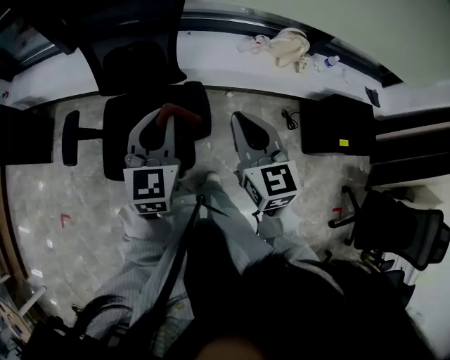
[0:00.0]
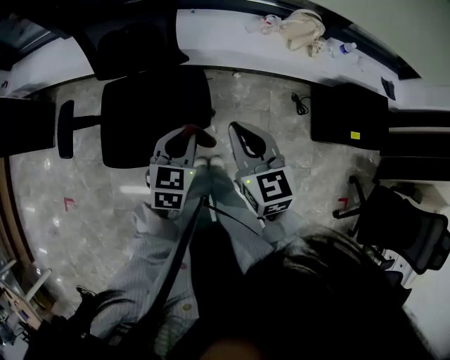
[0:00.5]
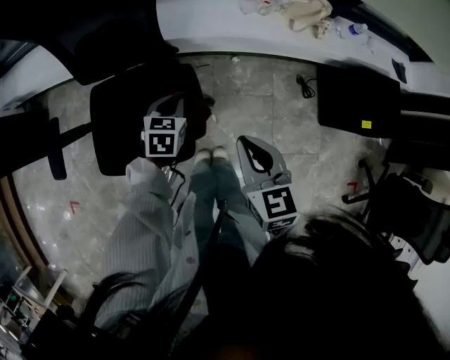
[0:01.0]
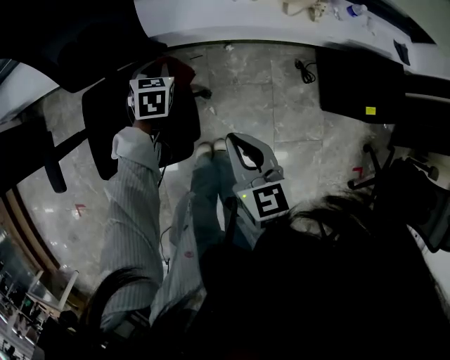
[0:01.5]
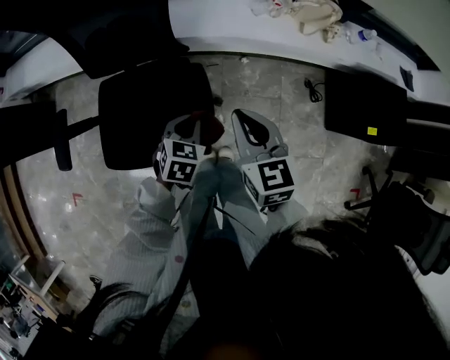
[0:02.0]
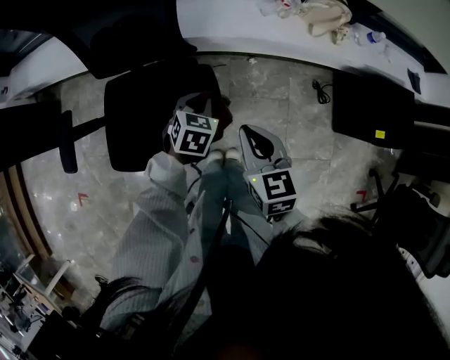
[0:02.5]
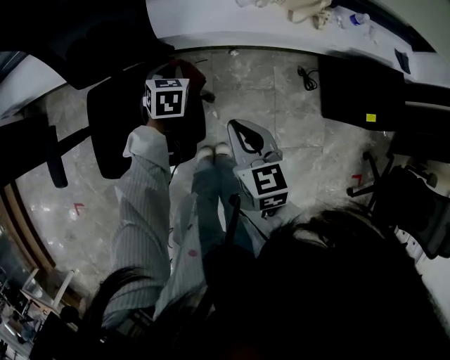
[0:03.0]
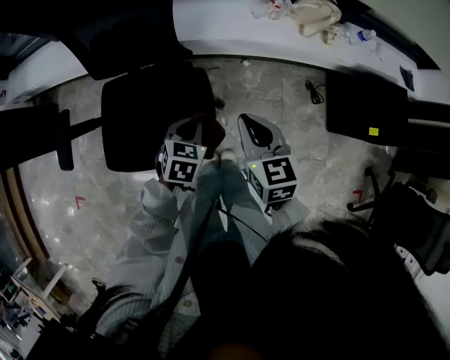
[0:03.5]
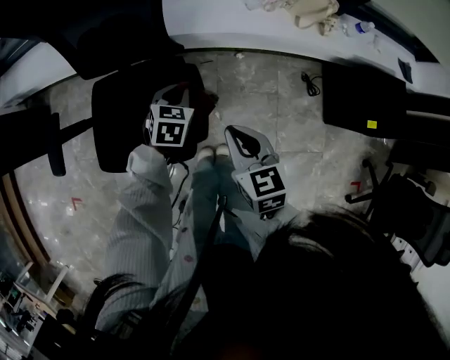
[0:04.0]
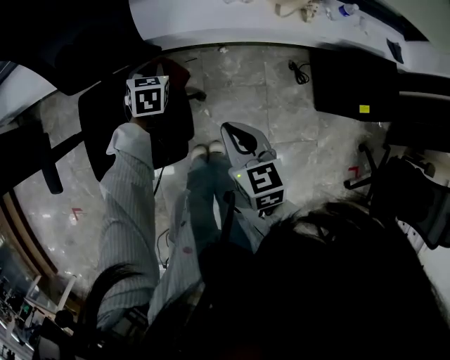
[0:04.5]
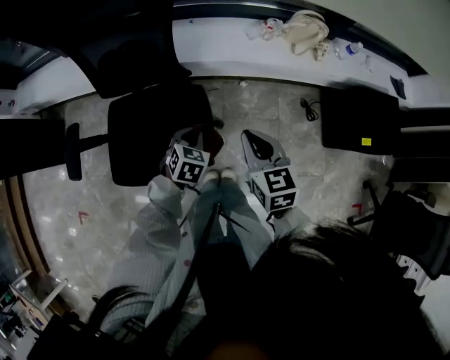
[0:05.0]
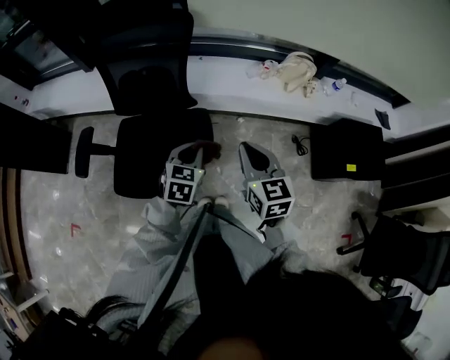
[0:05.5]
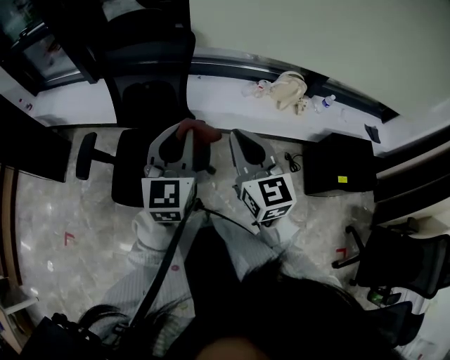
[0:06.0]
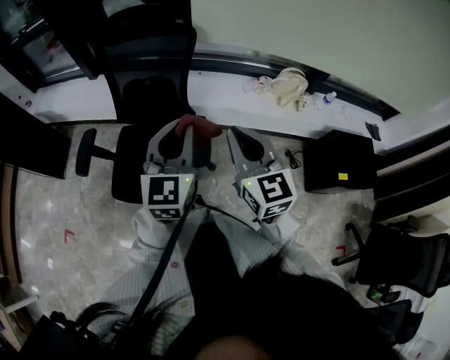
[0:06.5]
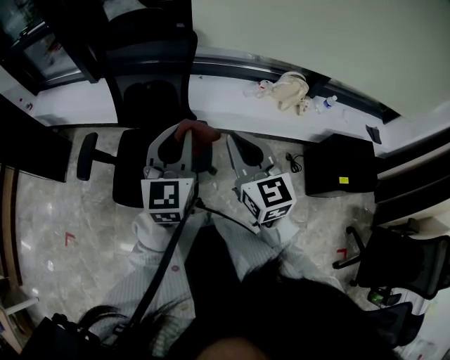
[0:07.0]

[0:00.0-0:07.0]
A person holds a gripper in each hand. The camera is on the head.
0:00.0 to 0:02.0: The left gripper shifts approximately 30 cm downward, and tilts its fingers about 40 degrees downward. Meanwhile the right gripper shifts approximately 20 cm downward and forward.
0:02.0 to 0:03.5: The left gripper moves roughly 15 cm forward and comes back.
0:03.5 to 0:05.0: The left gripper reaches some 20 cm forward, then returns.
0:05.0 to 0:07.0: The left gripper heads upward, covering about 35 cm, and angles its fingers upward, by about 50 degrees; the right gripper is displaced upward by some 20 cm, and swivels approximately 30 degrees.

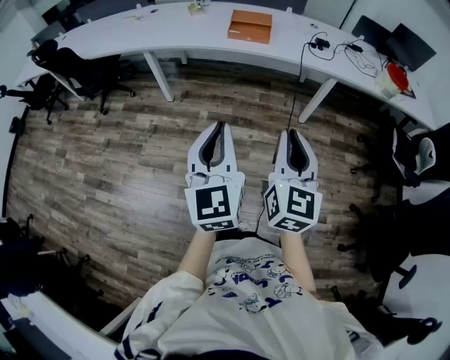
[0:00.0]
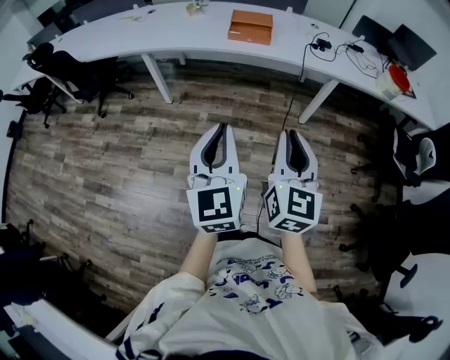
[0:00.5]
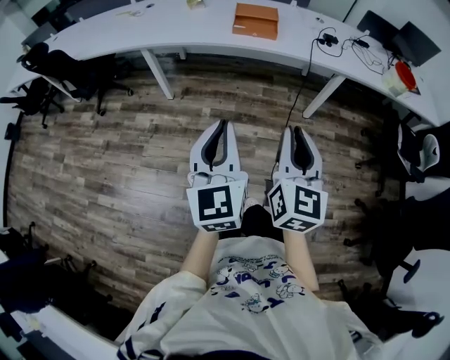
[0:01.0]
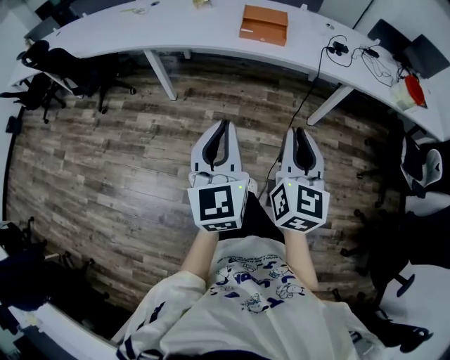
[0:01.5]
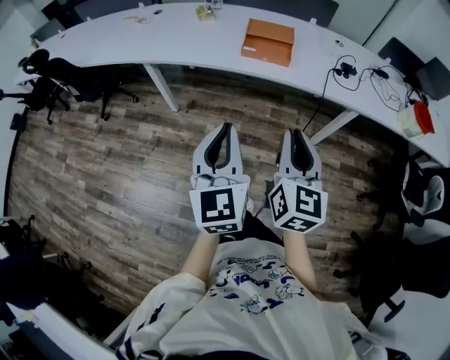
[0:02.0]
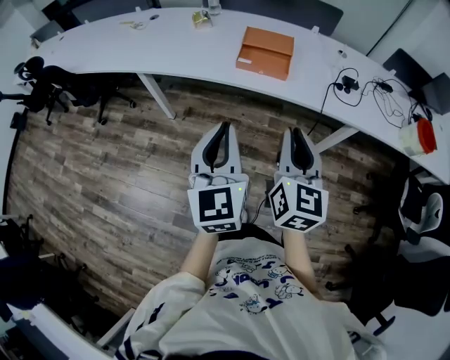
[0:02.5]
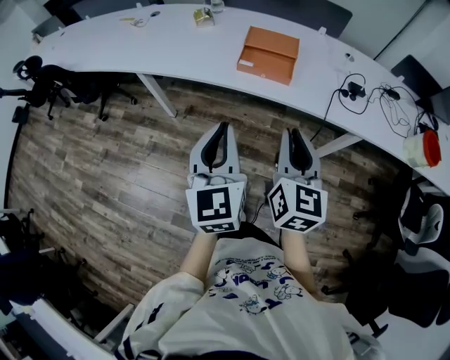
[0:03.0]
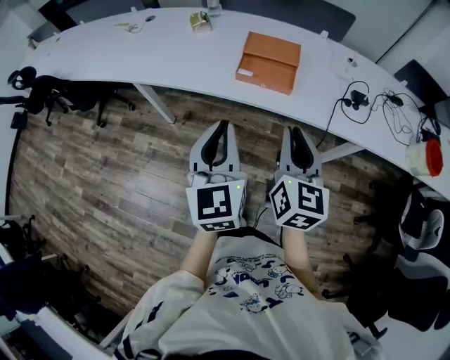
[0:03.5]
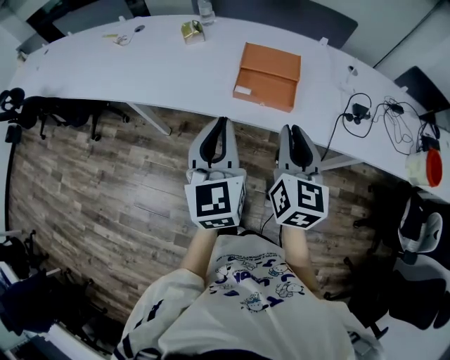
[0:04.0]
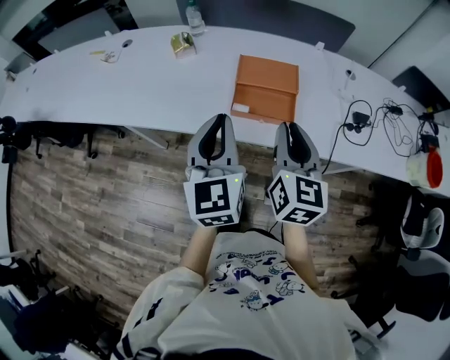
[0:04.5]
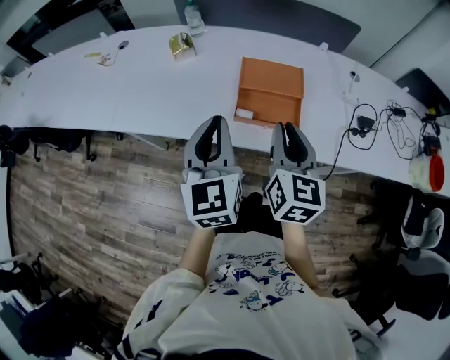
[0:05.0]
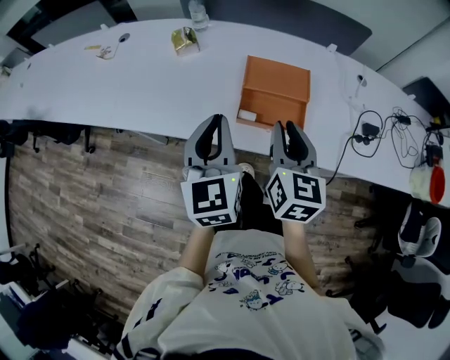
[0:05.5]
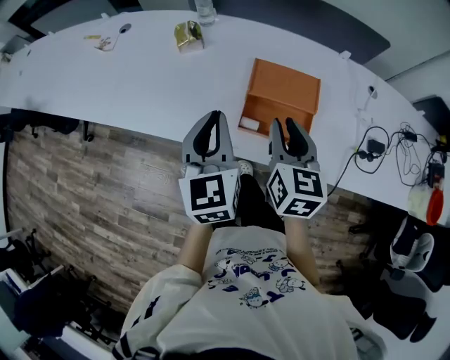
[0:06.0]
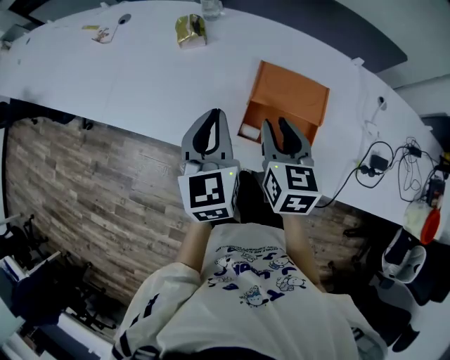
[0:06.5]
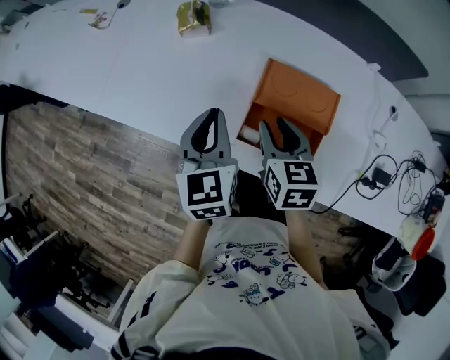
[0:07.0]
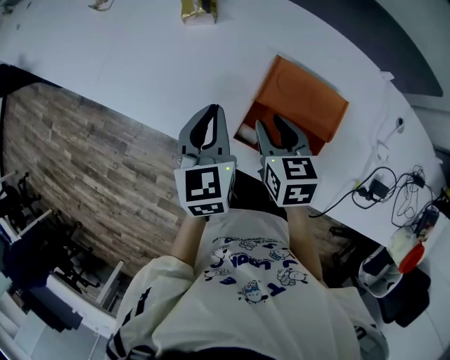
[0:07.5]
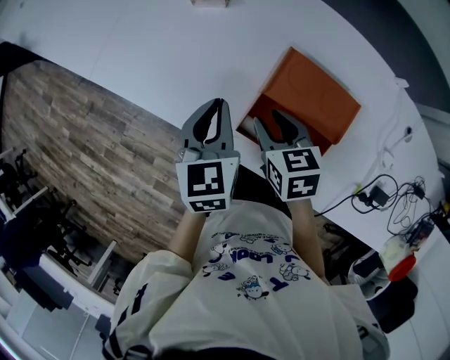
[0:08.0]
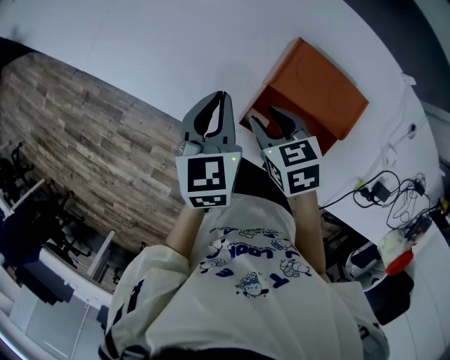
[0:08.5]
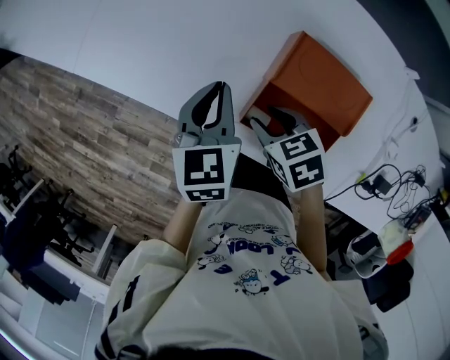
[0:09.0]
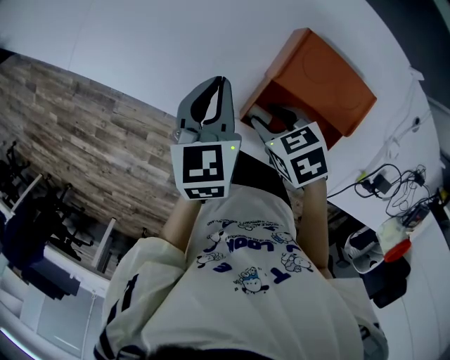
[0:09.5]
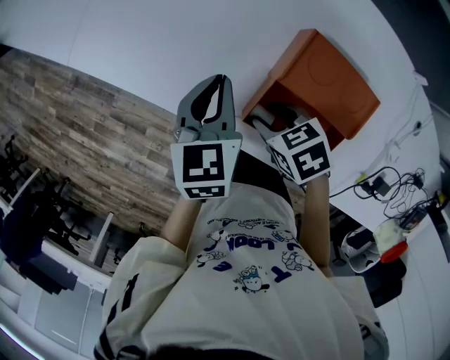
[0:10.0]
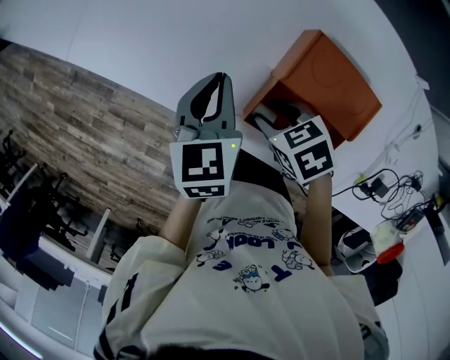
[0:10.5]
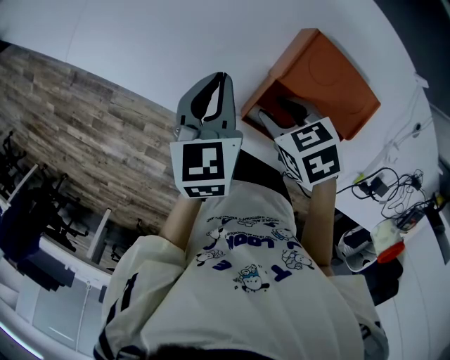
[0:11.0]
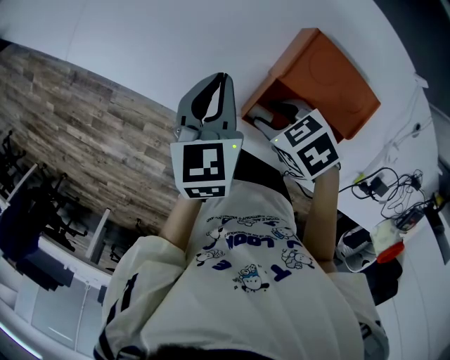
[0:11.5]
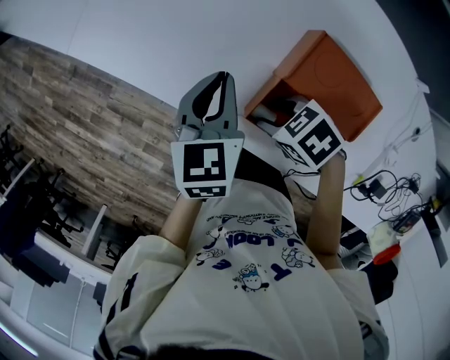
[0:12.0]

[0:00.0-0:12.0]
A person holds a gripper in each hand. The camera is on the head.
0:00.0 to 0:02.0: The grippers both shift forward by some 25 cm.
0:02.0 to 0:04.0: Both grippers move forward, about 30 cm.
0:04.0 to 0:06.0: The two grippers go roughly 20 cm forward.
0:06.0 to 0:08.0: Both grippers move downward, roughly 15 cm. The left gripper rotates roughly 20 degrees; the right gripper swivels roughly 40 degrees.
0:08.0 to 0:10.0: Both grippers travel together downward, approximately 5 cm. The right gripper changes its angle by some 30 degrees.
0:10.0 to 0:12.0: The right gripper rotates about 20 degrees.

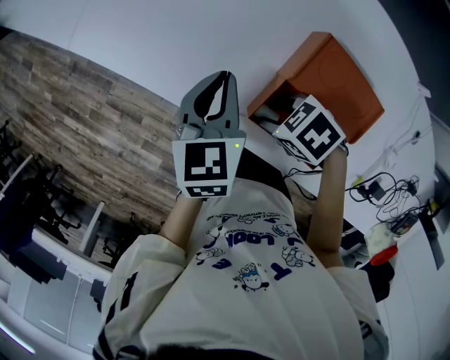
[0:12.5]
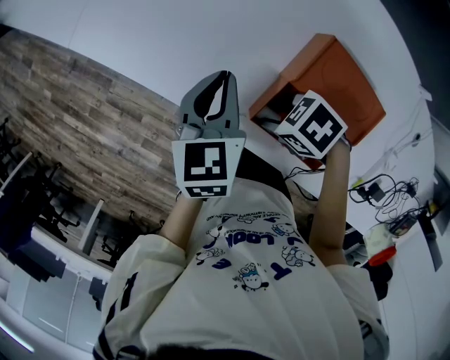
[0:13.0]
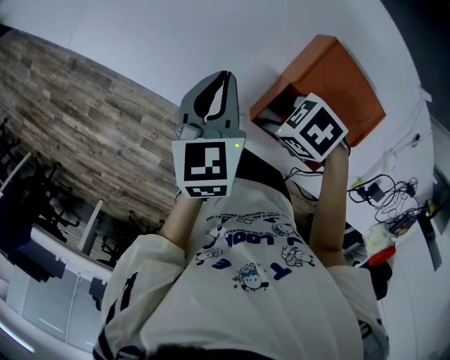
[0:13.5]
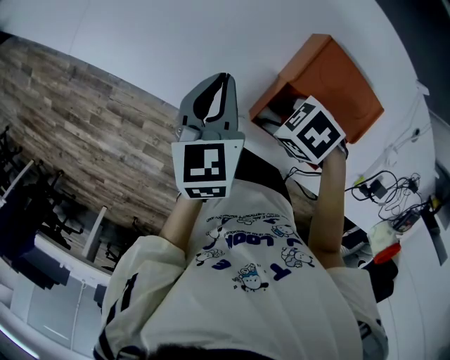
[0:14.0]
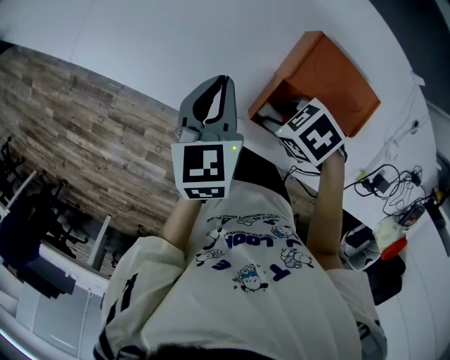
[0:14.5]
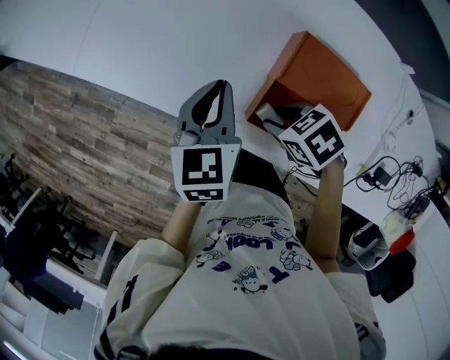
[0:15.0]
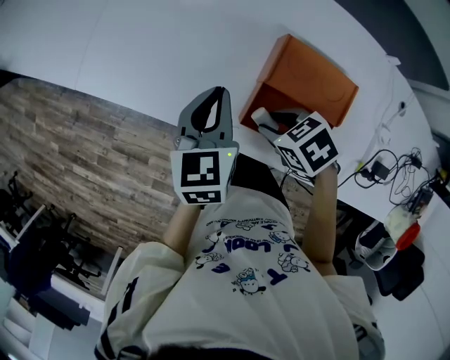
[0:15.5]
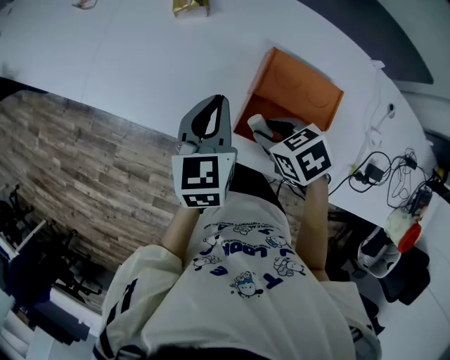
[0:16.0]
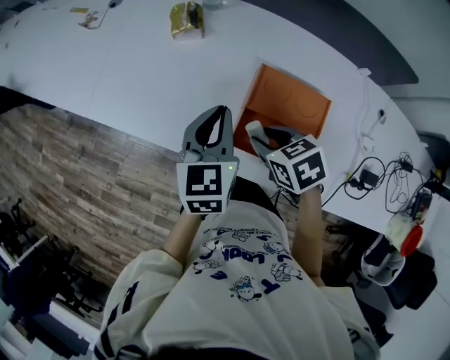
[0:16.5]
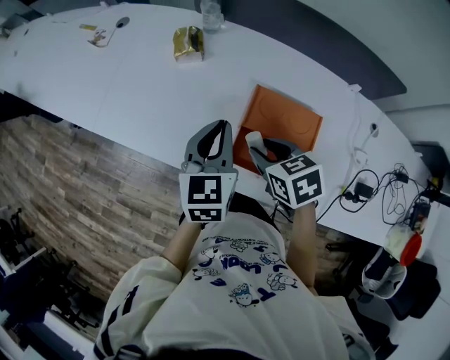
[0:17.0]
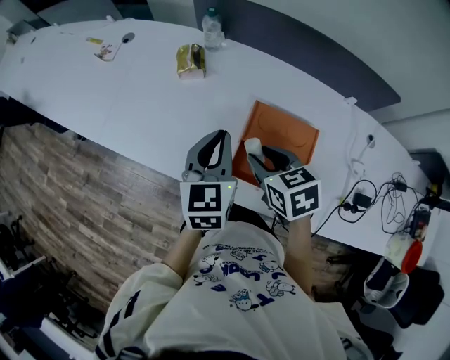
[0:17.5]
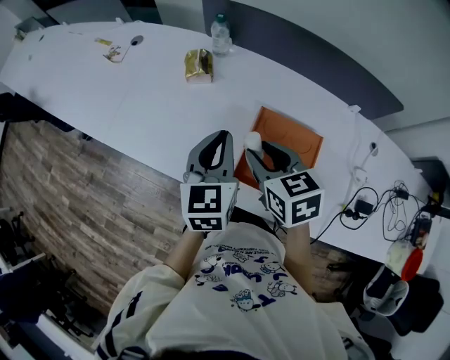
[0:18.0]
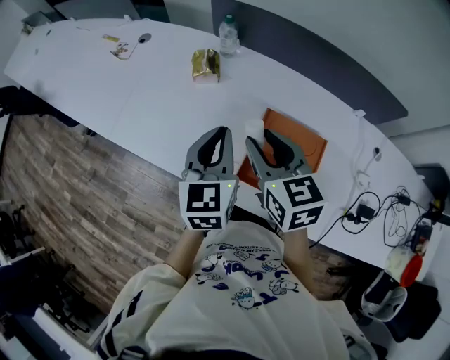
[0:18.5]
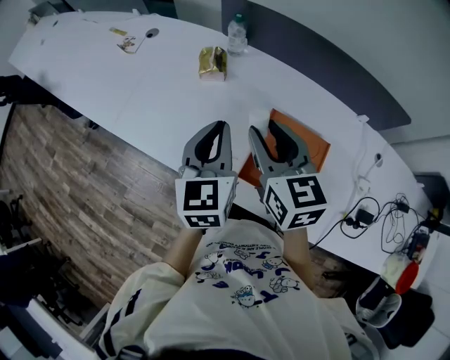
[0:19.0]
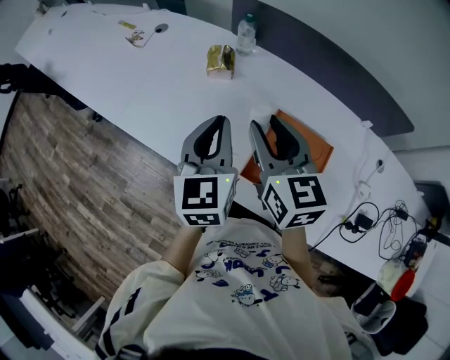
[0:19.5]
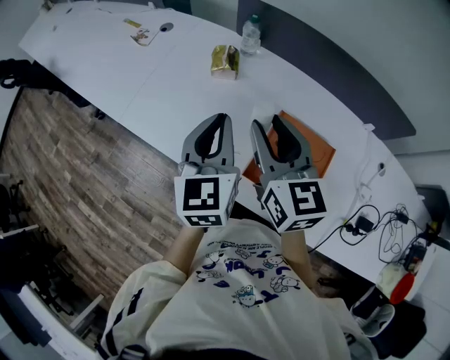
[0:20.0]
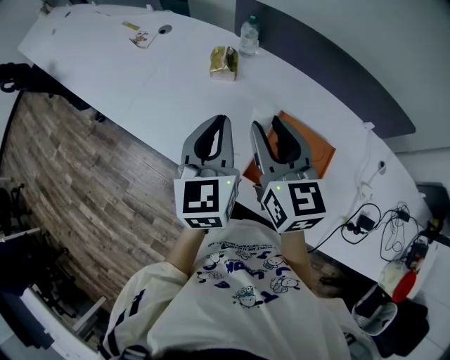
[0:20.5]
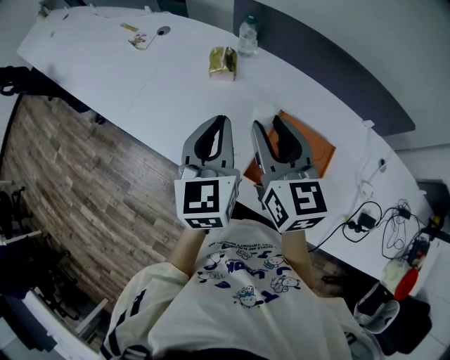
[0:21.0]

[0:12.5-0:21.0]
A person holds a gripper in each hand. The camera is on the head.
0:12.5 to 0:14.5: There are only small adjustments of the grippers.
0:14.5 to 0:16.5: Both grippers move upward, some 10 cm. The right gripper turns by some 30 degrees.
0:16.5 to 0:19.0: The right gripper heads upward and forward, covering about 20 cm, and tilts its fingers about 40 degrees upward. Meanwhile the left gripper shifts some 10 cm upward.
0:19.0 to 0:21.0: There are only small adjustments of the grippers.
